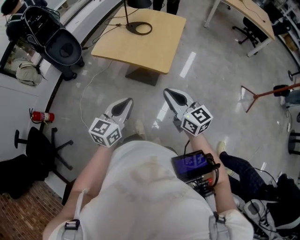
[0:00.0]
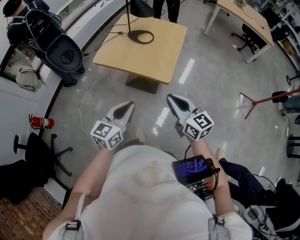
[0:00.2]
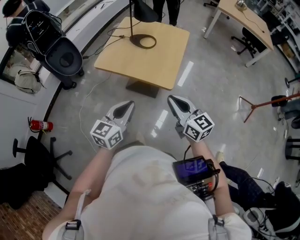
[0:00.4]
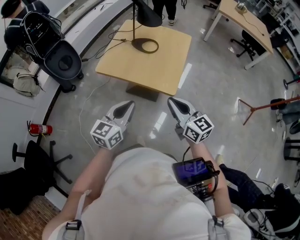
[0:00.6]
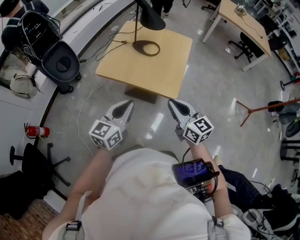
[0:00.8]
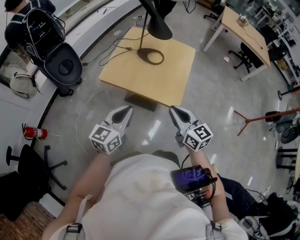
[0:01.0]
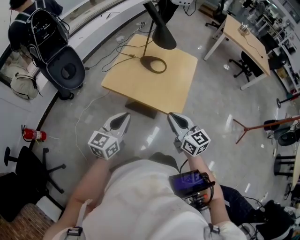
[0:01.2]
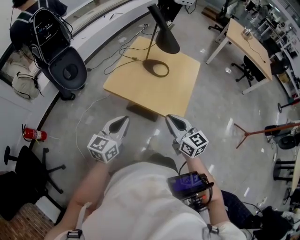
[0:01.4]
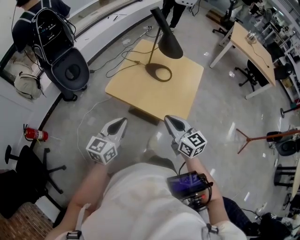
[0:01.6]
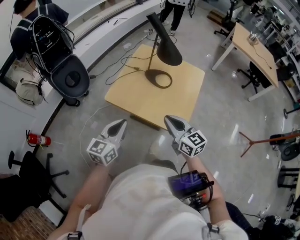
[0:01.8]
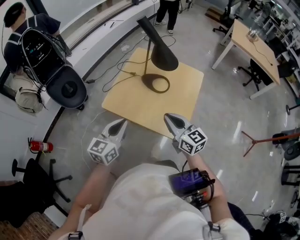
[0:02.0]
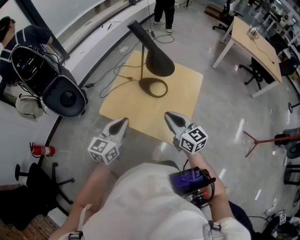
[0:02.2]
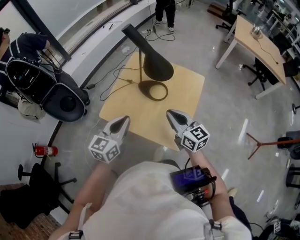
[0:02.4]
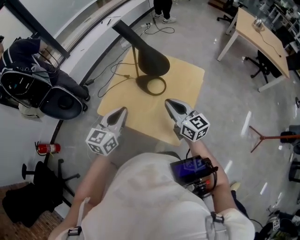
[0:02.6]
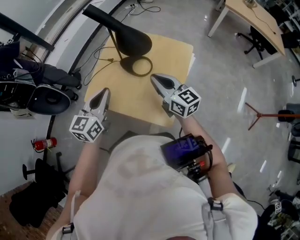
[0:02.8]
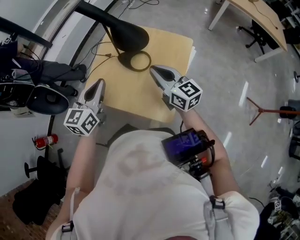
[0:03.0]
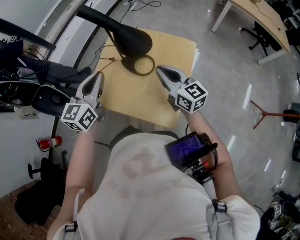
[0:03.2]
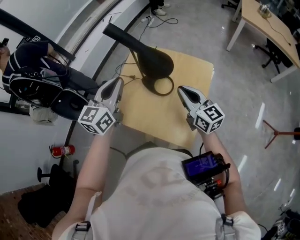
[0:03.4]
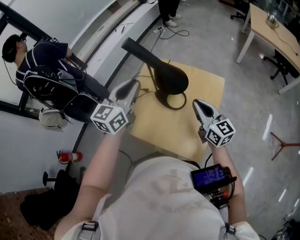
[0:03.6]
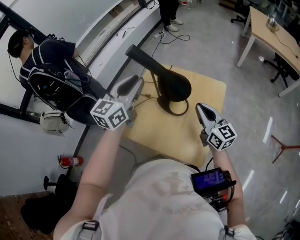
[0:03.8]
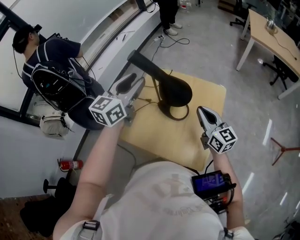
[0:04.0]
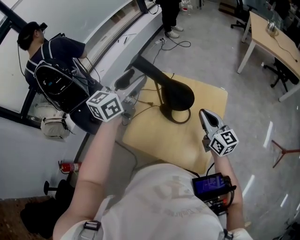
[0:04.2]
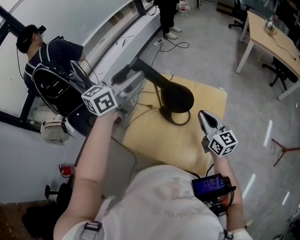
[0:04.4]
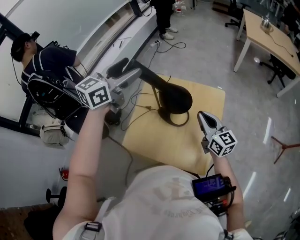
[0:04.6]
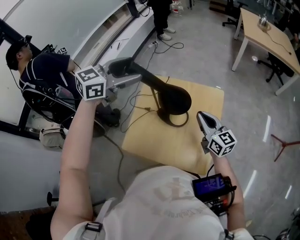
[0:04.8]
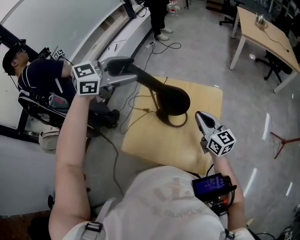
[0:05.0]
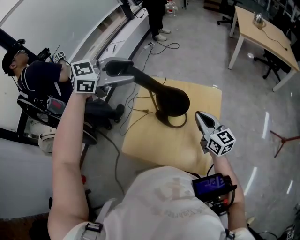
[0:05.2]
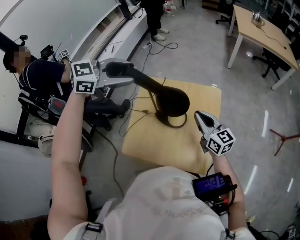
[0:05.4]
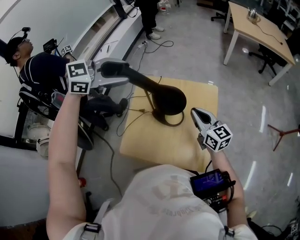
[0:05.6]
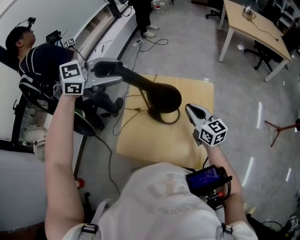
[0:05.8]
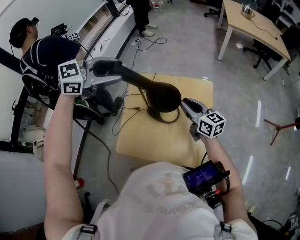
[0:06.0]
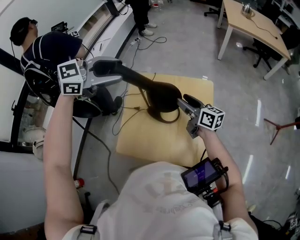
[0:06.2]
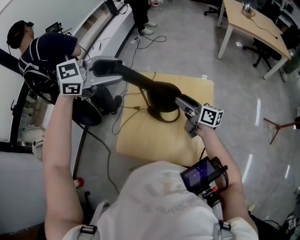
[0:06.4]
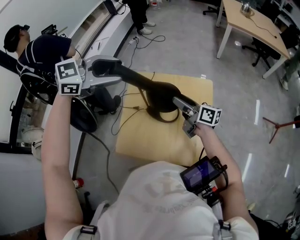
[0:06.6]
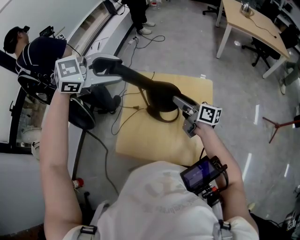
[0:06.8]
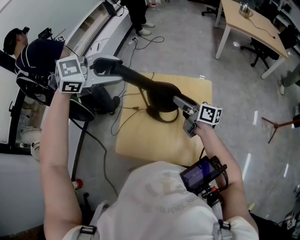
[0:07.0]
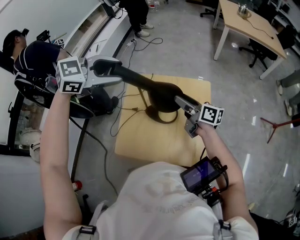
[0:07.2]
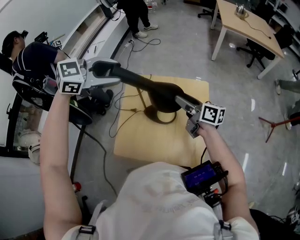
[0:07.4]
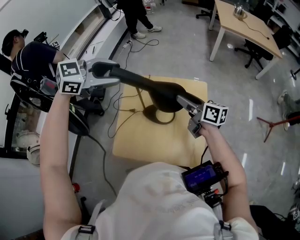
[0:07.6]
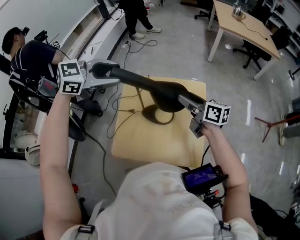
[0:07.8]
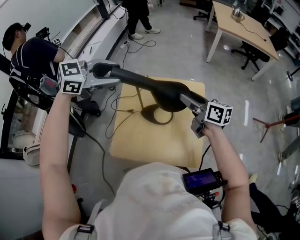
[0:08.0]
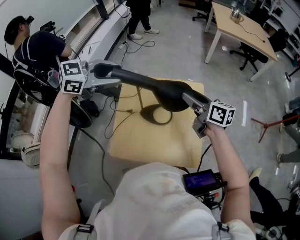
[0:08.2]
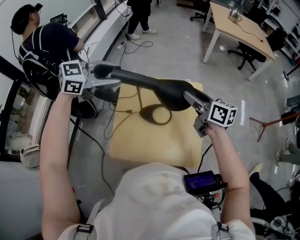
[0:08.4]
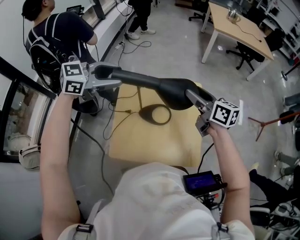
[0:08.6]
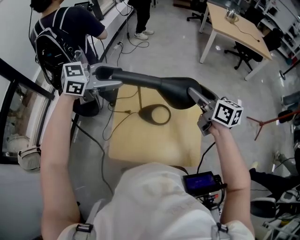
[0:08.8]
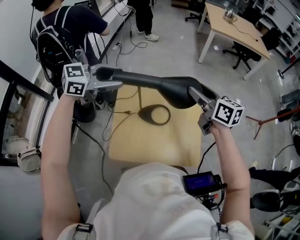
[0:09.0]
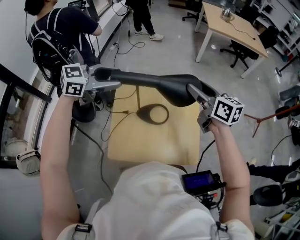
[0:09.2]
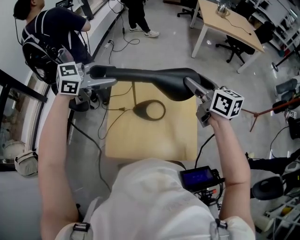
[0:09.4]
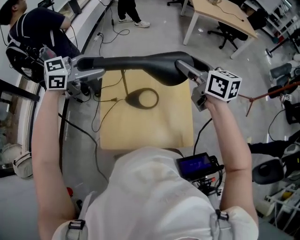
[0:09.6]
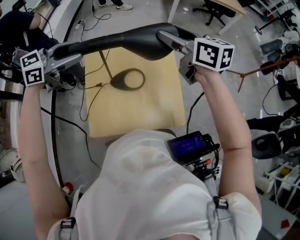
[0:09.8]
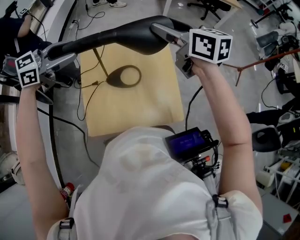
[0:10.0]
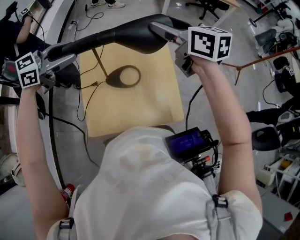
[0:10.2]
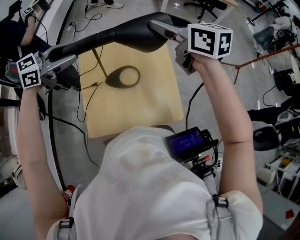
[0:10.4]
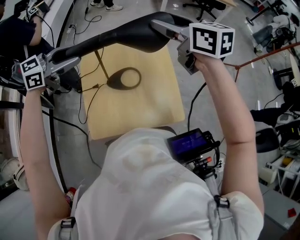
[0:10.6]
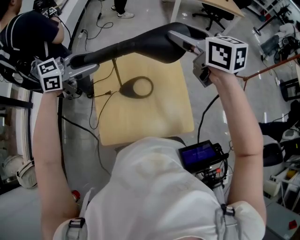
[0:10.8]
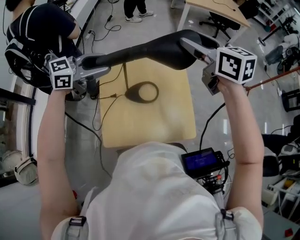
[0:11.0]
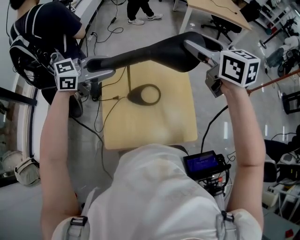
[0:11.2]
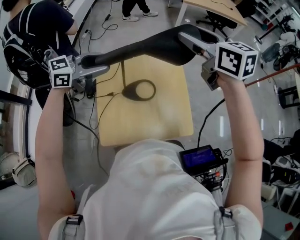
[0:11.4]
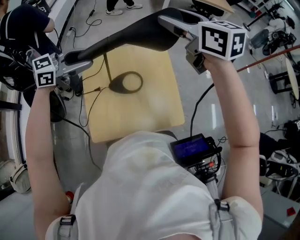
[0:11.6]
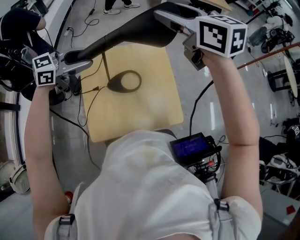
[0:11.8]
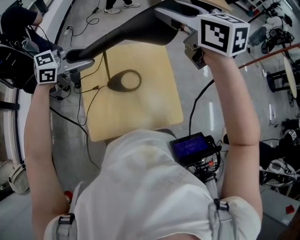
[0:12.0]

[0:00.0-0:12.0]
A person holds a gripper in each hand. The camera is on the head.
0:00.0 to 0:01.6: Both grippers travel together forward and to the left, approximately 25 cm.
0:01.6 to 0:03.0: Both grippers travel together forward and to the right, some 25 cm.
0:03.0 to 0:04.4: The left gripper shifts approximately 25 cm forward and upward, and opens up; the right gripper shifts approximately 5 cm forward.
0:04.4 to 0:06.0: The right gripper changes place by some 5 cm, while the left gripper turns by some 50 degrees.
0:06.0 to 0:07.6: The right gripper opens.
0:07.6 to 0:09.0: The right gripper goes about 10 cm upward.
0:09.0 to 0:10.4: The right gripper travels upward by approximately 5 cm.
0:10.4 to 0:12.0: The right gripper goes some 10 cm upward.

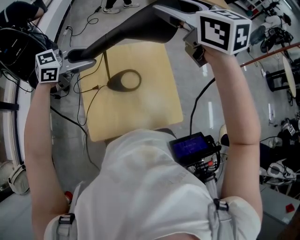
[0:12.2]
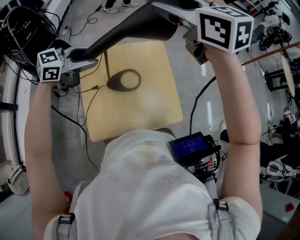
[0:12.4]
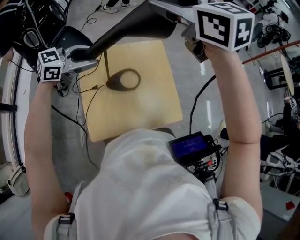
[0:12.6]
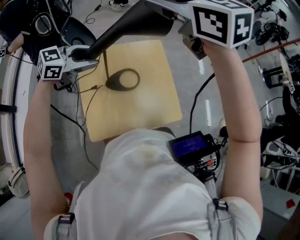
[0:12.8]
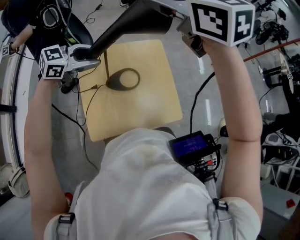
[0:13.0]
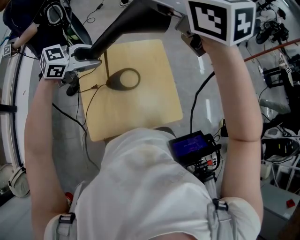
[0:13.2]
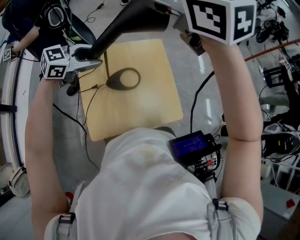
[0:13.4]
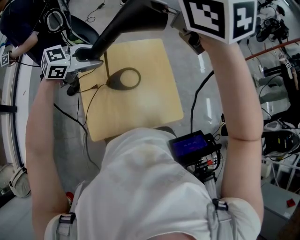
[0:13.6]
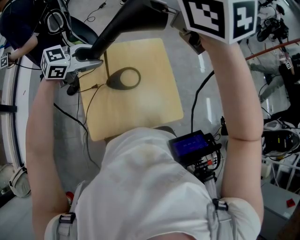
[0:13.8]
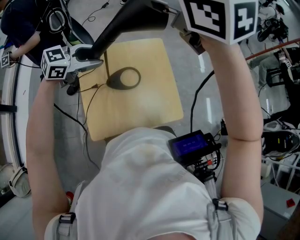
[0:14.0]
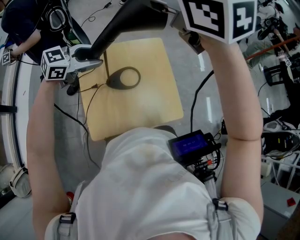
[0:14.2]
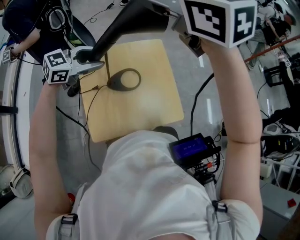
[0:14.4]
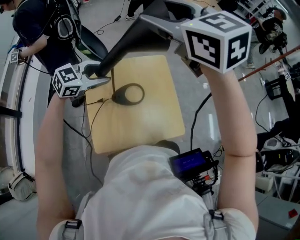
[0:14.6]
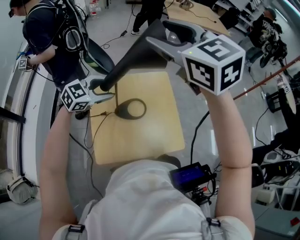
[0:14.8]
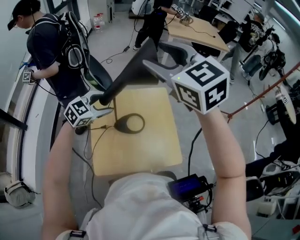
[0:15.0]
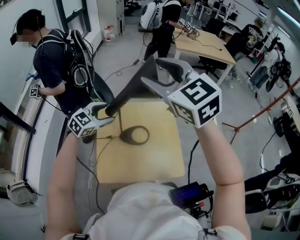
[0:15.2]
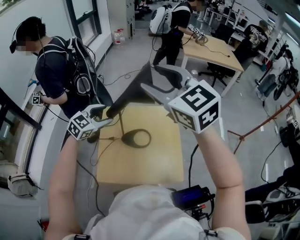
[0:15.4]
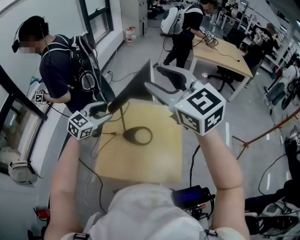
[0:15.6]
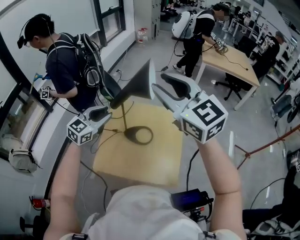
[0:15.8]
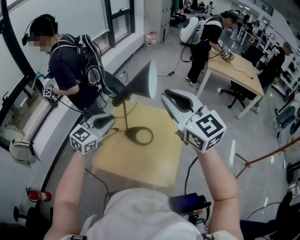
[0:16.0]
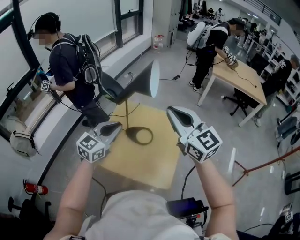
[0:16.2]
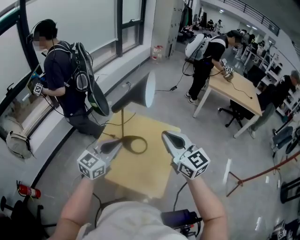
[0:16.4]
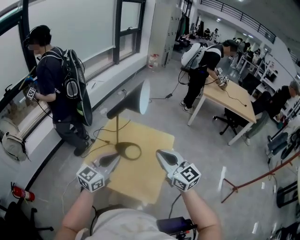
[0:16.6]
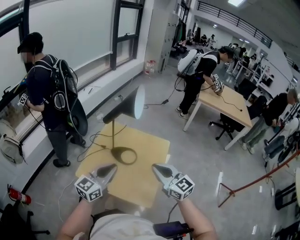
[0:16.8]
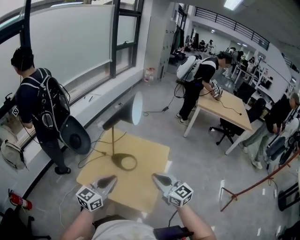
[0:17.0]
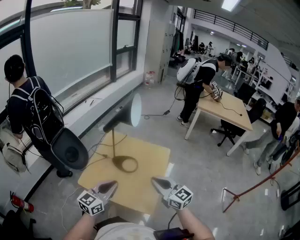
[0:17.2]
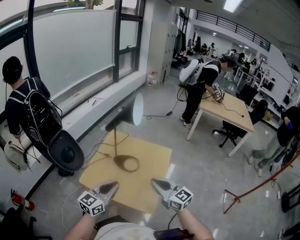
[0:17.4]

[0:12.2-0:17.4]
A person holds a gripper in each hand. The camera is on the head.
0:12.2 to 0:14.0: The right gripper travels upward by about 5 cm.
0:14.0 to 0:15.6: The right gripper moves about 10 cm, and turns by some 20 degrees, while the left gripper turns by approximately 40 degrees.
0:15.6 to 0:17.4: The left gripper heads backward, covering approximately 30 cm, turns by some 30 degrees, and closes its fingers. The right gripper travels downward and backward by about 35 cm, changes its angle by about 30 degrees, and closes up.

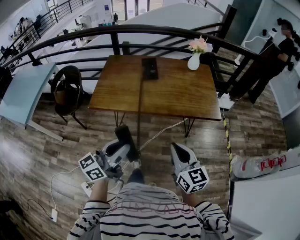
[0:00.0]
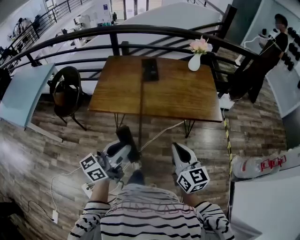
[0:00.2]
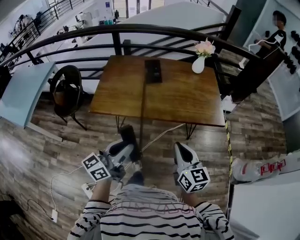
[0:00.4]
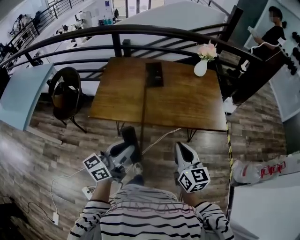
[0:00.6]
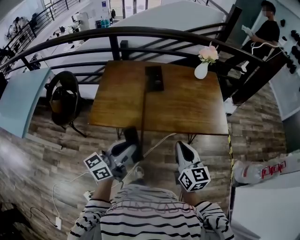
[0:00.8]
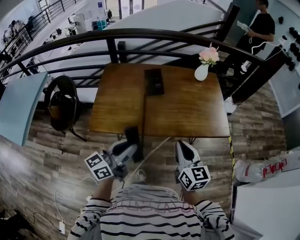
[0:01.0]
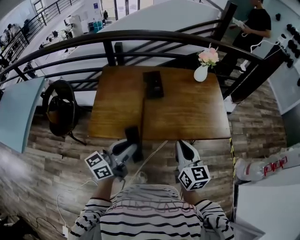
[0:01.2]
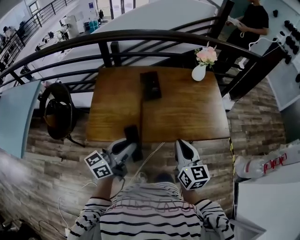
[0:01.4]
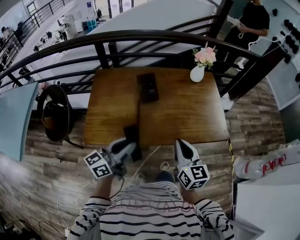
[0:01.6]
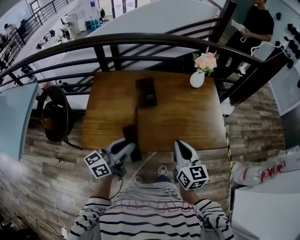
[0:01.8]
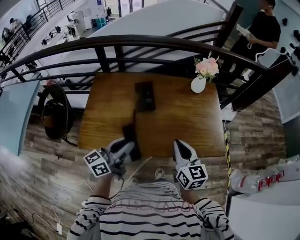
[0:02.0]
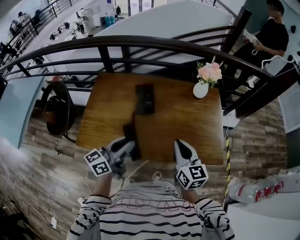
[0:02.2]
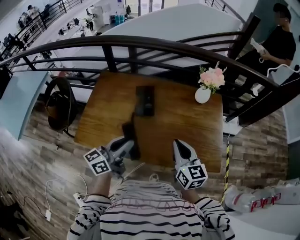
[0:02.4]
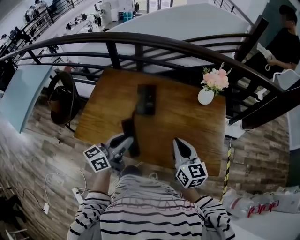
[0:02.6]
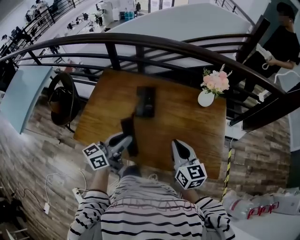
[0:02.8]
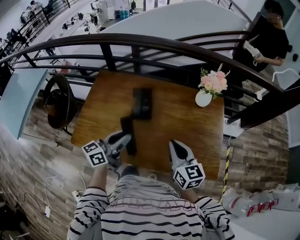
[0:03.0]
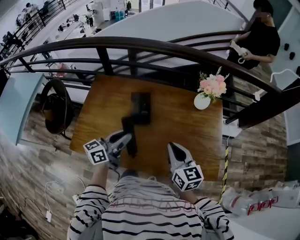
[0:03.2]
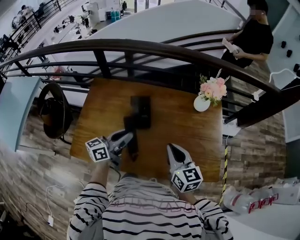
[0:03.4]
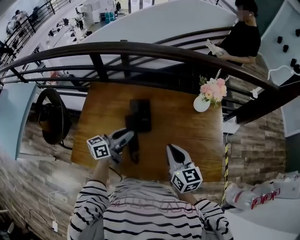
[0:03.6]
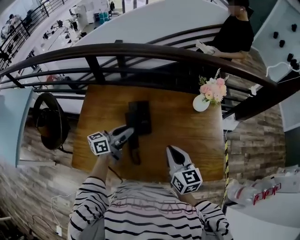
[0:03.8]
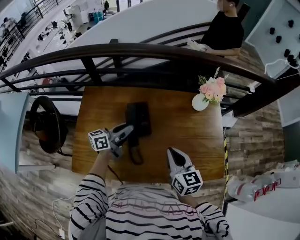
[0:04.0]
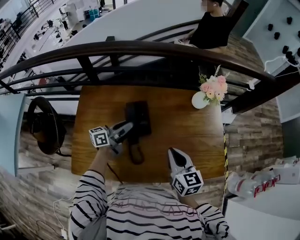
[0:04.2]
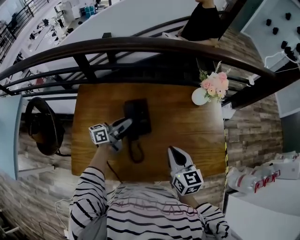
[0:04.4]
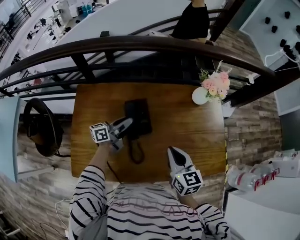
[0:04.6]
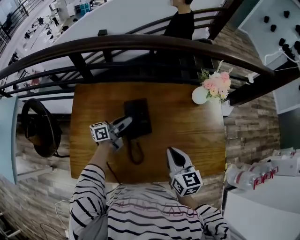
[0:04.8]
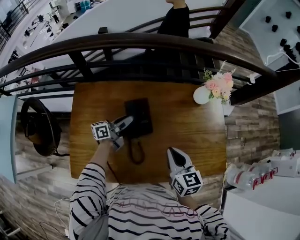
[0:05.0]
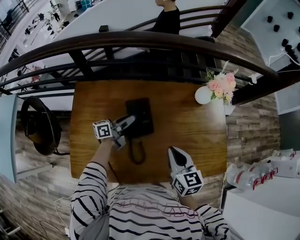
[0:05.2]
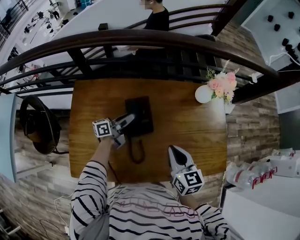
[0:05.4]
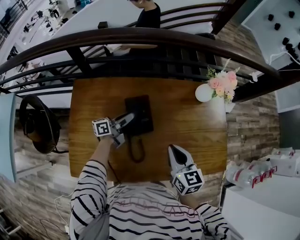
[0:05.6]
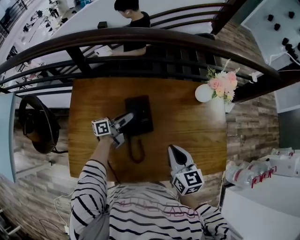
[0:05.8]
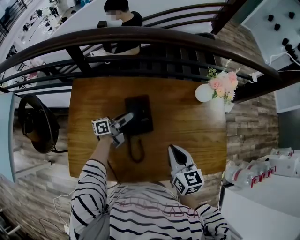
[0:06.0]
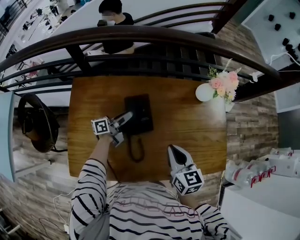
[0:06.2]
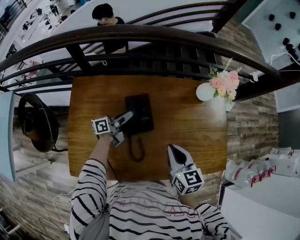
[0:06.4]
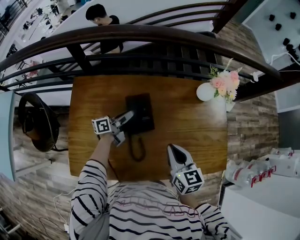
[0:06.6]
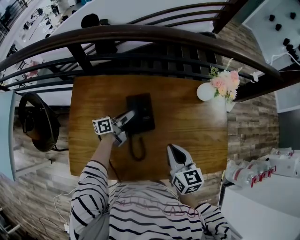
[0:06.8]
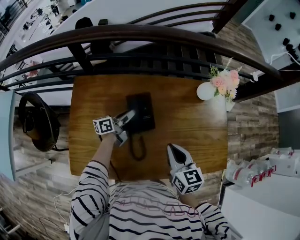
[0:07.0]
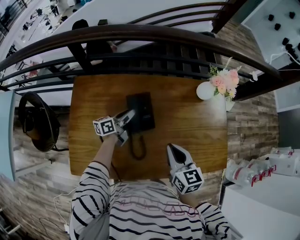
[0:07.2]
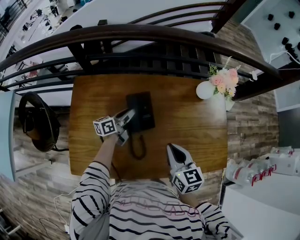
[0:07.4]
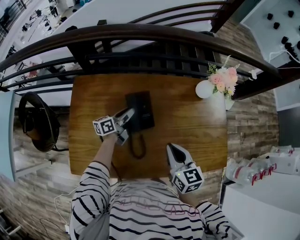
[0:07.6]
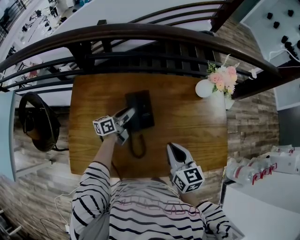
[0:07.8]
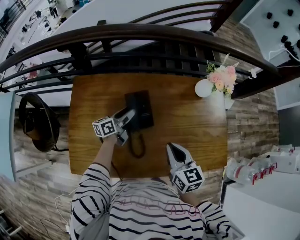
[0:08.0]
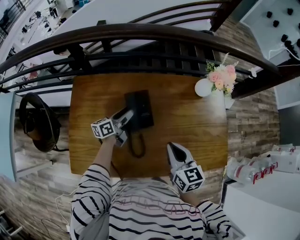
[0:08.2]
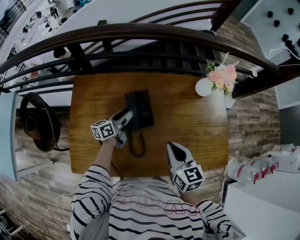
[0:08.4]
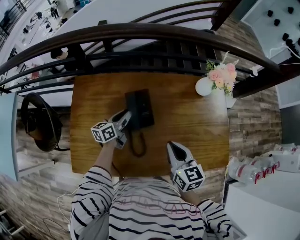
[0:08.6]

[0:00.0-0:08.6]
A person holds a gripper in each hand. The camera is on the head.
0:00.0 to 0:01.4: The two grippers go roughly 30 cm forward and to the left.
0:01.4 to 0:02.8: Both grippers move forward and to the right, approximately 25 cm.
0:02.8 to 0:04.4: The right gripper travels forward and to the left by approximately 15 cm, while the left gripper travels forward and downward by about 30 cm, and rotates approximately 30 degrees.
0:04.4 to 0:05.8: The left gripper is displaced downward by approximately 10 cm.
0:05.8 to 0:07.2: The grippers make only small movements.
0:07.2 to 0:08.6: The left gripper opens, then closes once more.
